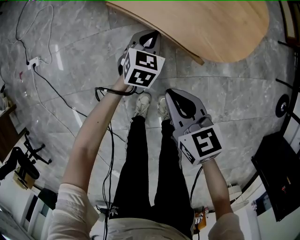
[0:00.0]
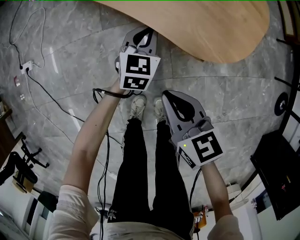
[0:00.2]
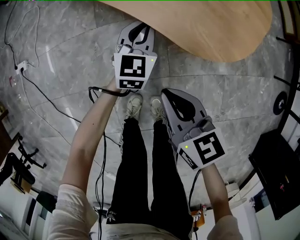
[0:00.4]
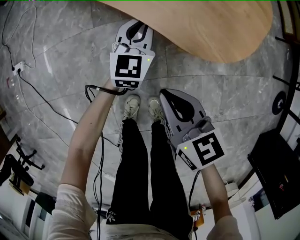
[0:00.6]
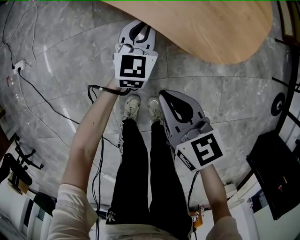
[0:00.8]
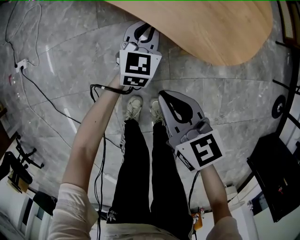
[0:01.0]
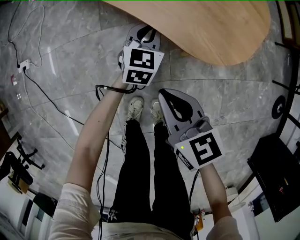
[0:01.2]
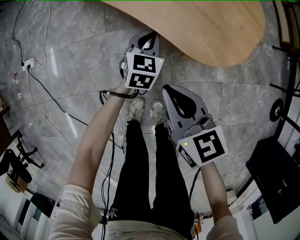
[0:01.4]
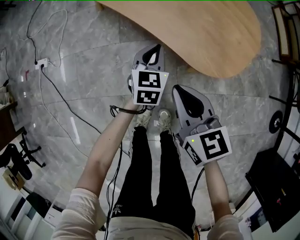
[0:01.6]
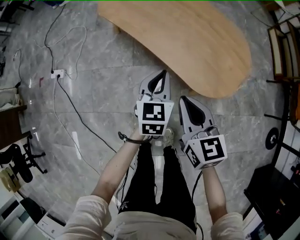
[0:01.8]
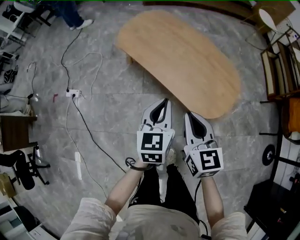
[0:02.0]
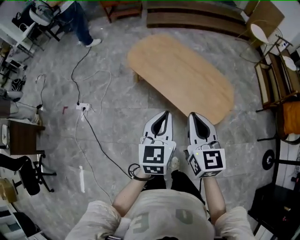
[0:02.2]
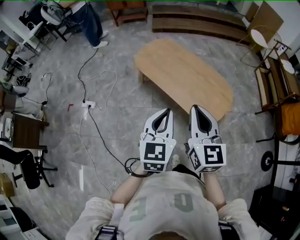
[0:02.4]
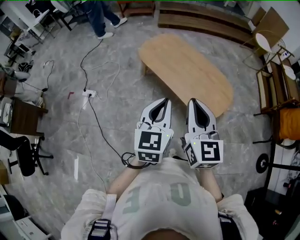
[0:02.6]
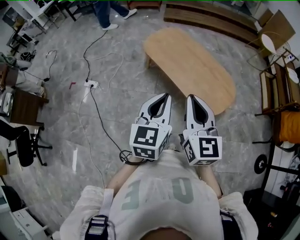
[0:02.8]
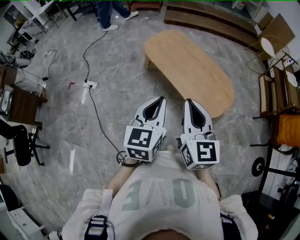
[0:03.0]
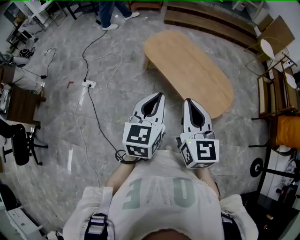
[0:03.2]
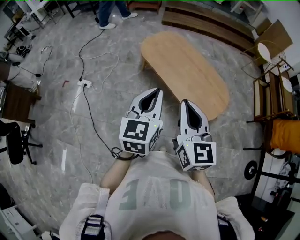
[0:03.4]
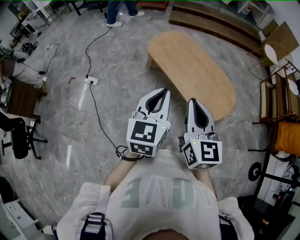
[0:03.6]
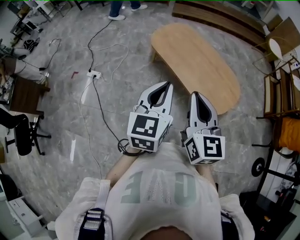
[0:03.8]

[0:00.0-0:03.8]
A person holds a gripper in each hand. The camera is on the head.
0:01.2 to 0:02.6: Both grippers move upward, approximately 60 cm. The right gripper changes its angle by approximately 40 degrees. The left gripper changes its angle by about 20 degrees.
0:02.6 to 0:03.8: The left gripper changes place by roughly 5 cm.

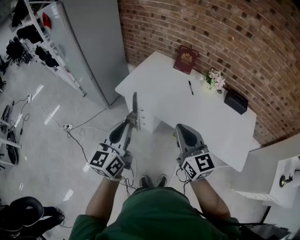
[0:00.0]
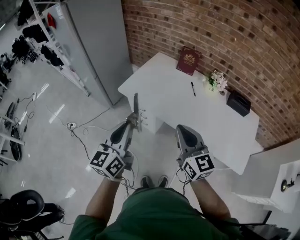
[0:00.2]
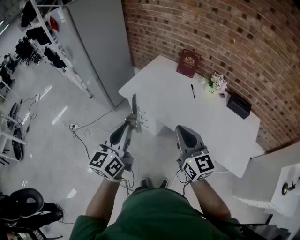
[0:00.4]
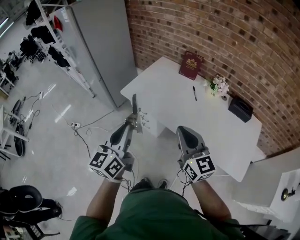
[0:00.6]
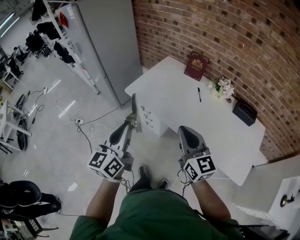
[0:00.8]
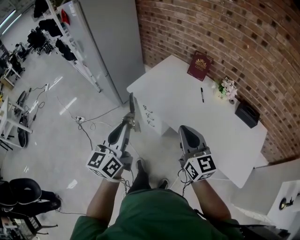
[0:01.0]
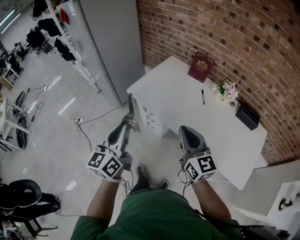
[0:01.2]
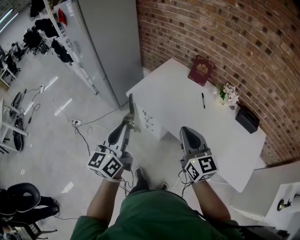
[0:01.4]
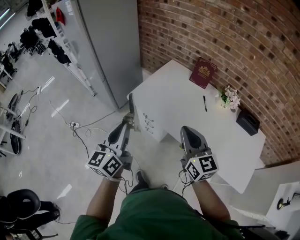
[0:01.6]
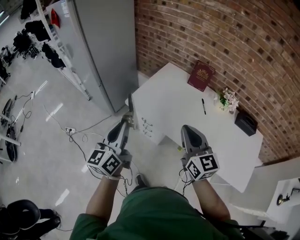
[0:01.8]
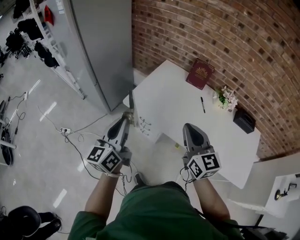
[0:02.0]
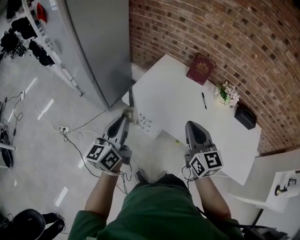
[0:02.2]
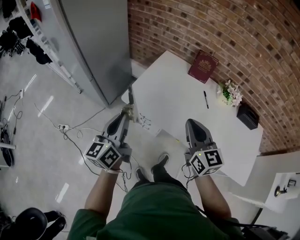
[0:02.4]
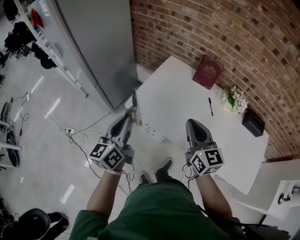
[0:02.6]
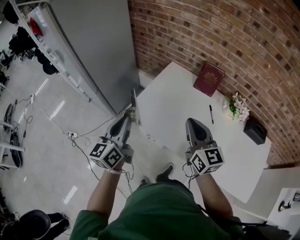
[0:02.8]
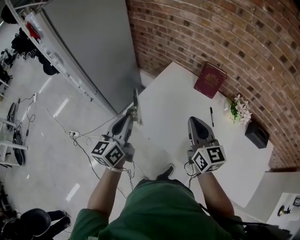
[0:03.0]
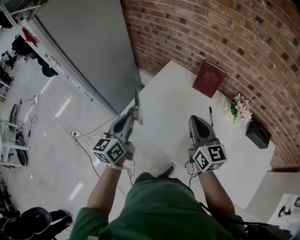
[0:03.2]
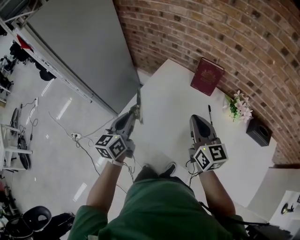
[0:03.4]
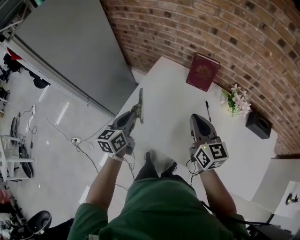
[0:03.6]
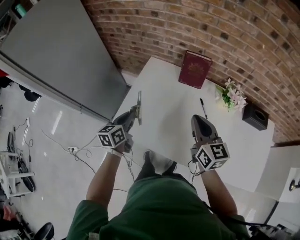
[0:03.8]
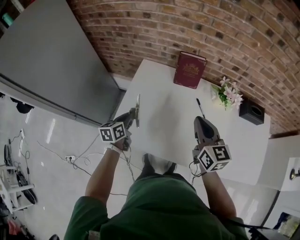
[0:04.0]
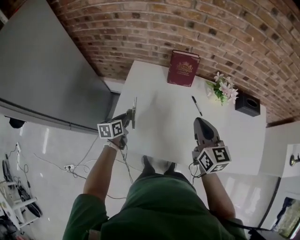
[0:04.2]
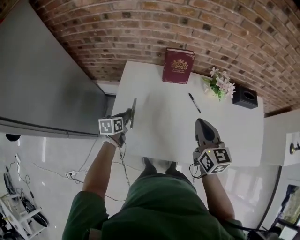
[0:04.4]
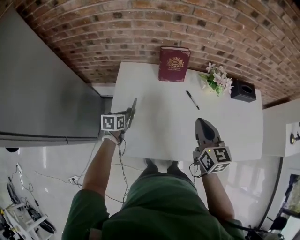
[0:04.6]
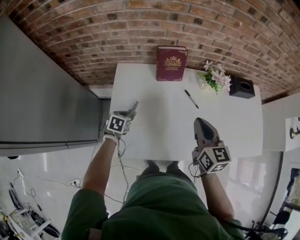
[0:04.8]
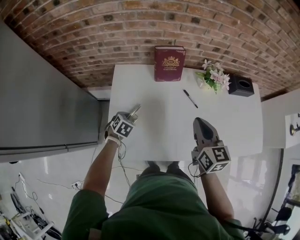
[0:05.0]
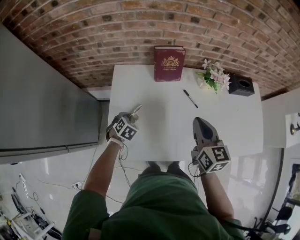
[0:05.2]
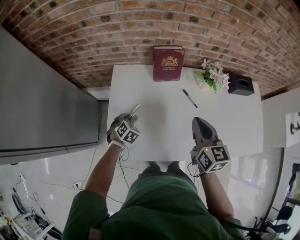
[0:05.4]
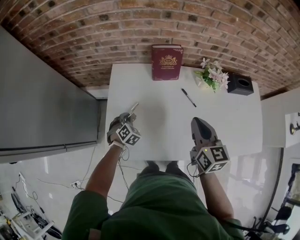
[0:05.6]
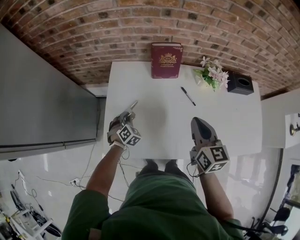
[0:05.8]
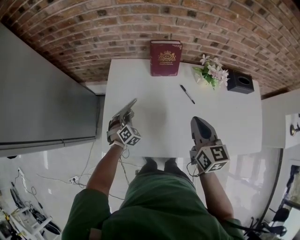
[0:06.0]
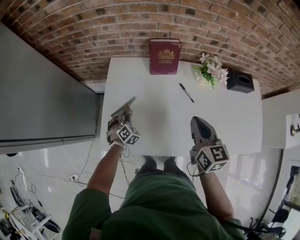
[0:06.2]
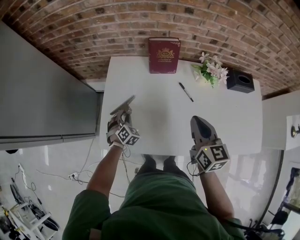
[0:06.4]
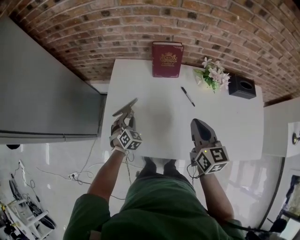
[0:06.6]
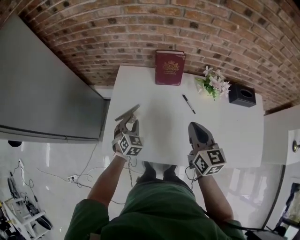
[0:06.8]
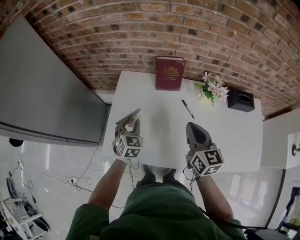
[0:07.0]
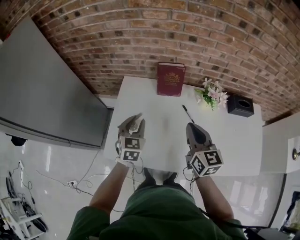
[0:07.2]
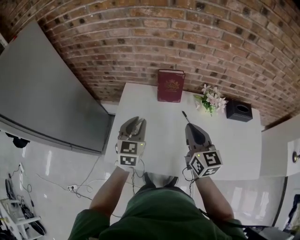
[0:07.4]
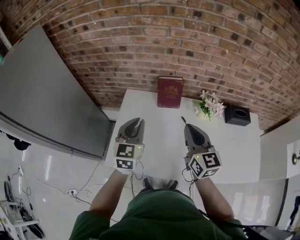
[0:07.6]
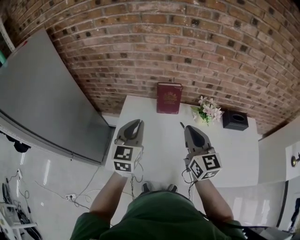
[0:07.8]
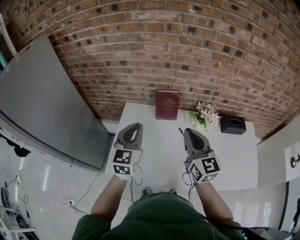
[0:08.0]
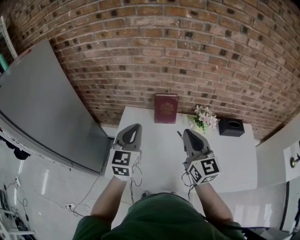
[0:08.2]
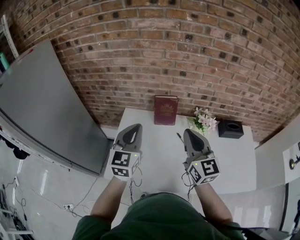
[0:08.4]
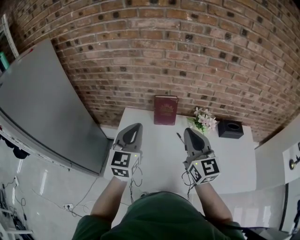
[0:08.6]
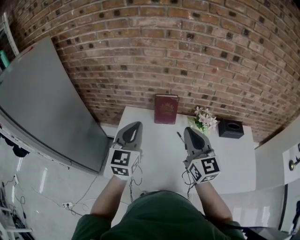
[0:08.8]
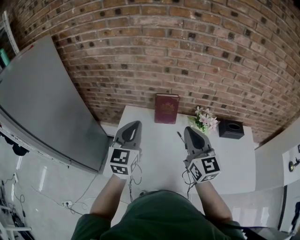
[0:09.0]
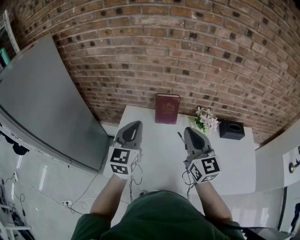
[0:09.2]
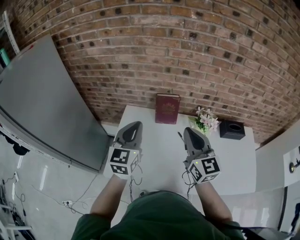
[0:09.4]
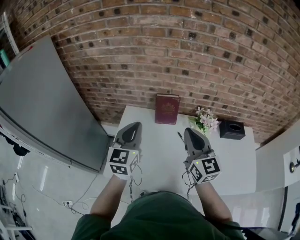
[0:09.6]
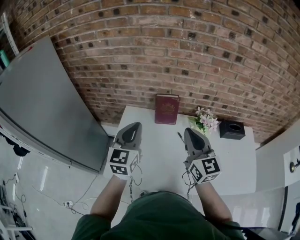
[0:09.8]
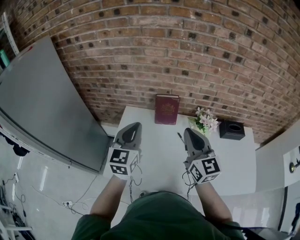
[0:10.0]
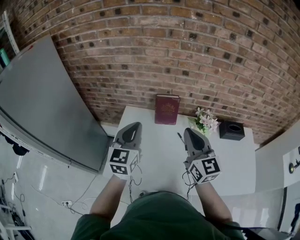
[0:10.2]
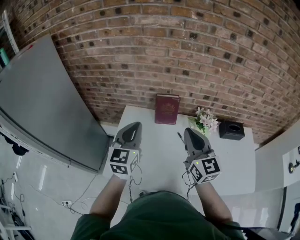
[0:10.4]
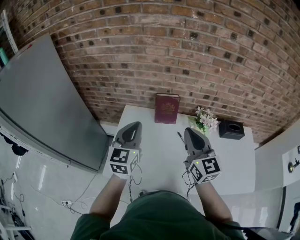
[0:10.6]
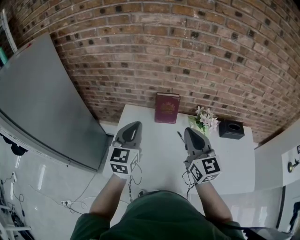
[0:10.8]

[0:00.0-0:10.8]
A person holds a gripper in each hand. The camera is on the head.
0:00.0 to 0:01.6: Both grippers travel together forward, some 10 cm.
0:01.6 to 0:03.0: The grippers both shift forward by some 25 cm.
0:03.0 to 0:04.6: The left gripper goes some 30 cm downward, and angles its fingers downward, by about 50 degrees. The right gripper moves about 15 cm, and changes its angle by roughly 40 degrees.
0:04.6 to 0:06.2: The left gripper ends up approximately 5 cm from where it was, twists approximately 60 degrees clockwise, seen from behind, and opens.
0:06.2 to 0:07.8: The left gripper is displaced upward by some 35 cm, and points its fingers about 40 degrees further upward; the right gripper goes about 10 cm upward, and turns by roughly 20 degrees.
0:07.8 to 0:10.8: The grippers make only small movements.

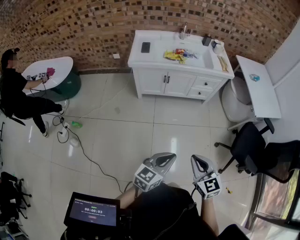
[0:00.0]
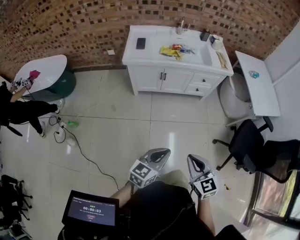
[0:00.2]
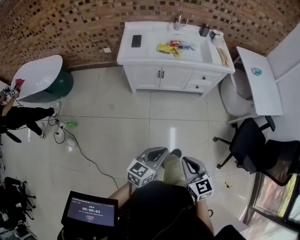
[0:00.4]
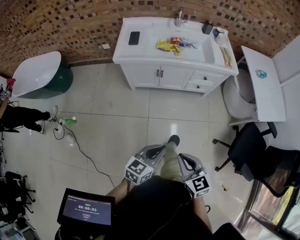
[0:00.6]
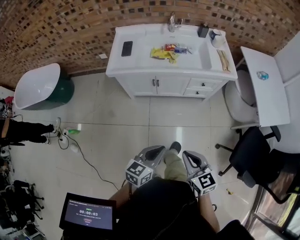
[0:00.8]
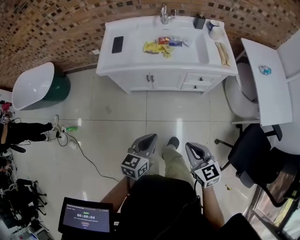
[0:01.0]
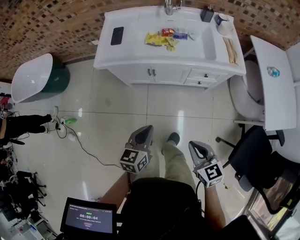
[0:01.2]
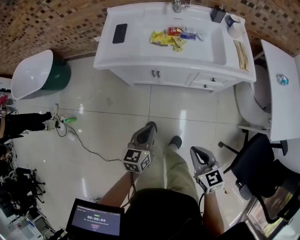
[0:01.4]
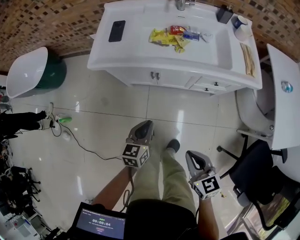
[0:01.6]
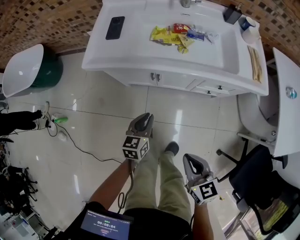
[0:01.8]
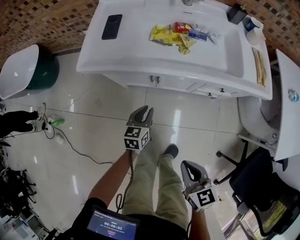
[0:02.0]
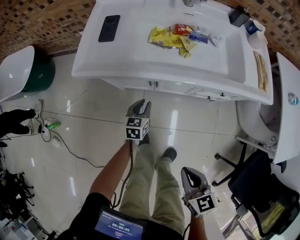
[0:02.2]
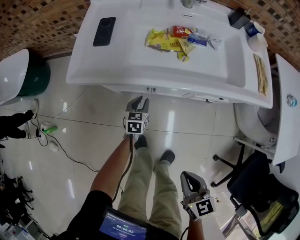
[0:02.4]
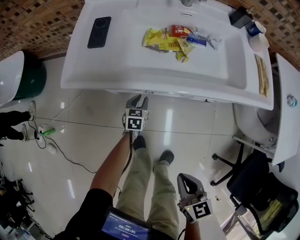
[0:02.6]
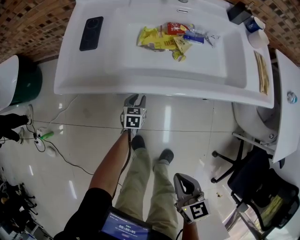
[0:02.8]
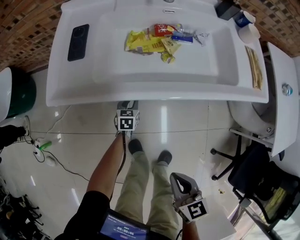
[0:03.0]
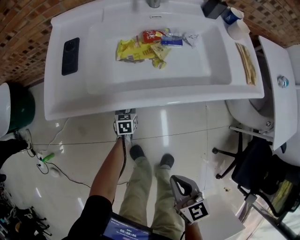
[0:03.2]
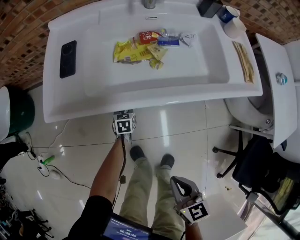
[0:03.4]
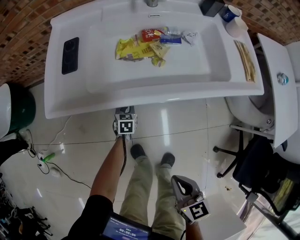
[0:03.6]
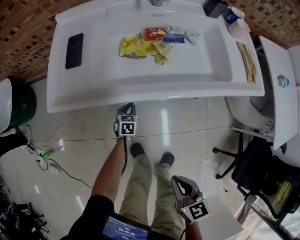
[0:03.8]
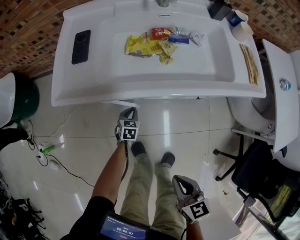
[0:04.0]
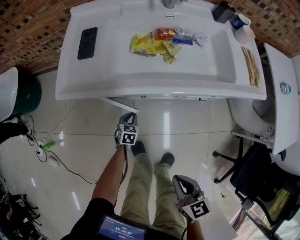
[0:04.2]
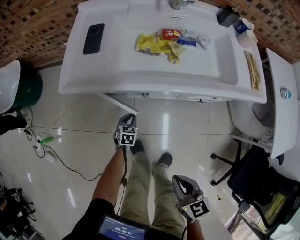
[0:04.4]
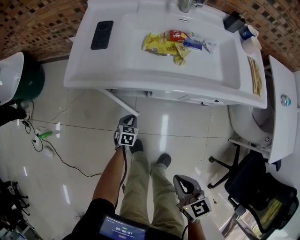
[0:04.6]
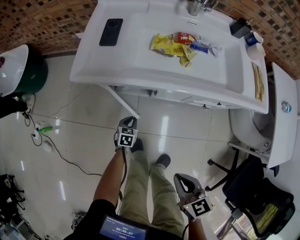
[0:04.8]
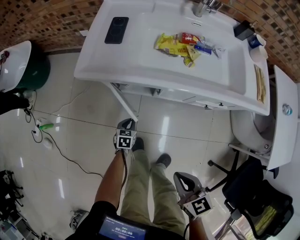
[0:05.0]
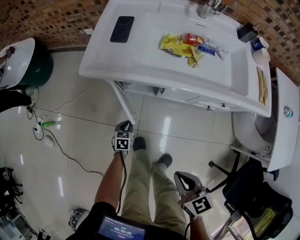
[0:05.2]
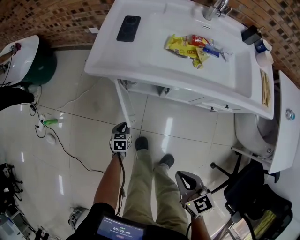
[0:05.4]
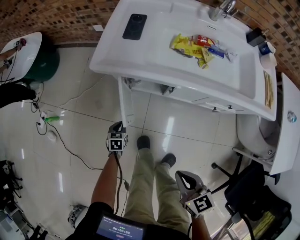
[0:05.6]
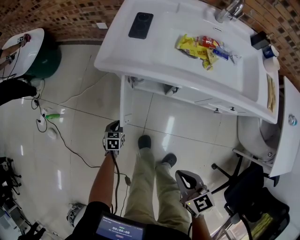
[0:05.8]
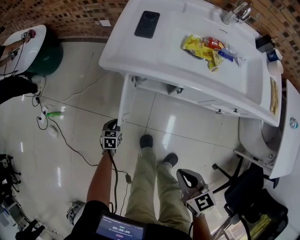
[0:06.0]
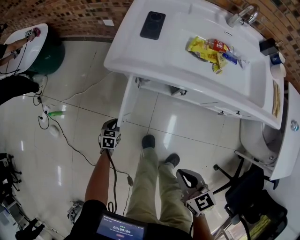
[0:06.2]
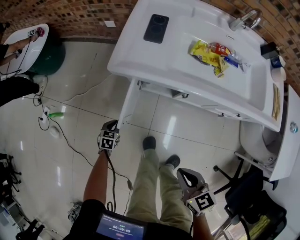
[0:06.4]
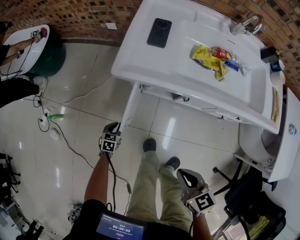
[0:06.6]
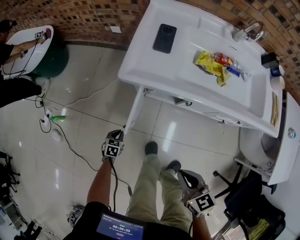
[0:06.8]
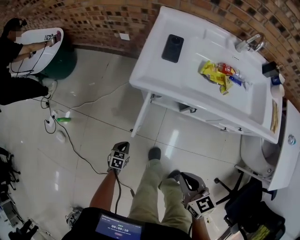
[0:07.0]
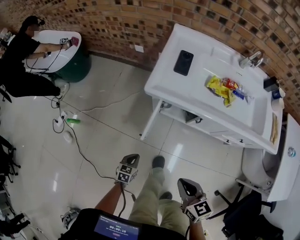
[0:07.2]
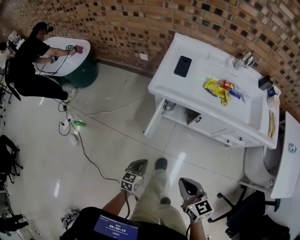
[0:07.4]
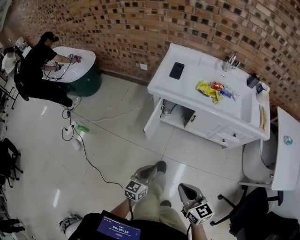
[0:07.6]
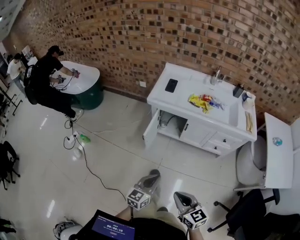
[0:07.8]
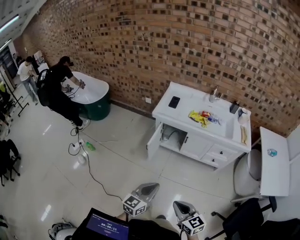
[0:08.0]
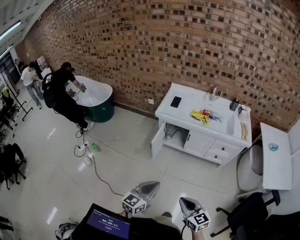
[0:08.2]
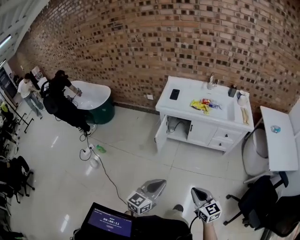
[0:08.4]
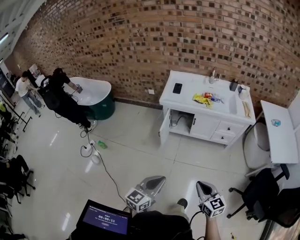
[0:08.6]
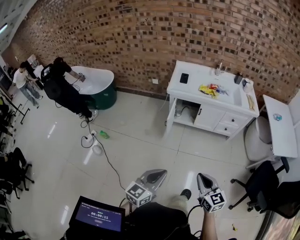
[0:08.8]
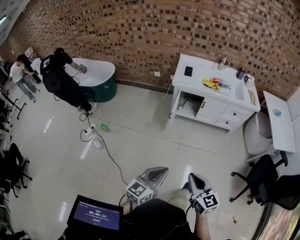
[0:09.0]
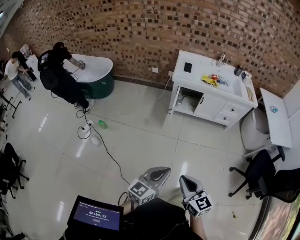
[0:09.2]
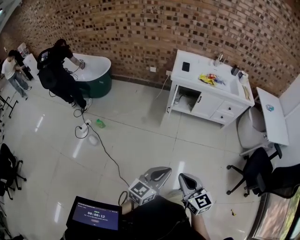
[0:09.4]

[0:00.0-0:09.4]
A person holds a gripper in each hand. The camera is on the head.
0:00.0 to 0:01.6: The two grippers go roughly 50 cm forward and downward. The left gripper rotates roughly 30 degrees.
0:01.6 to 0:03.2: The right gripper goes some 15 cm forward, downward and to the left, while the left gripper travels downward and forward by roughly 40 cm, and opens.
0:03.2 to 0:04.8: The left gripper heads backward and to the left, covering roughly 15 cm. The right gripper shifts roughly 5 cm backward.
0:04.8 to 0:06.2: The right gripper heads to the left, covering approximately 10 cm. Meanwhile the left gripper moves to the left, some 25 cm.
0:06.2 to 0:07.8: The right gripper moves backward and upward, approximately 30 cm. The left gripper travels upward and backward by about 50 cm, and points its fingers roughly 40 degrees further upward.
0:07.8 to 0:09.4: The left gripper moves backward, to the left and upward, some 40 cm. The right gripper shifts approximately 40 cm to the left, backward and upward.
